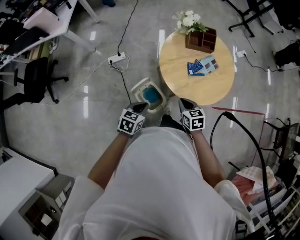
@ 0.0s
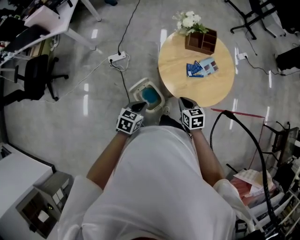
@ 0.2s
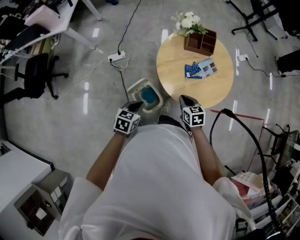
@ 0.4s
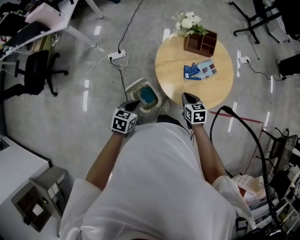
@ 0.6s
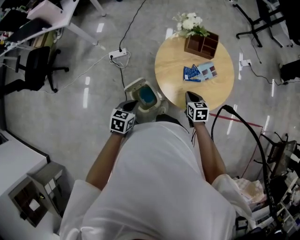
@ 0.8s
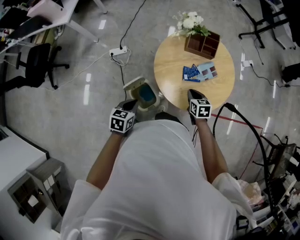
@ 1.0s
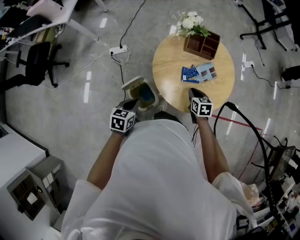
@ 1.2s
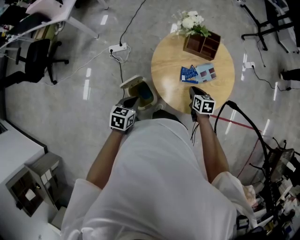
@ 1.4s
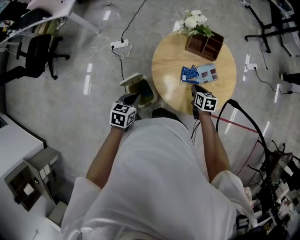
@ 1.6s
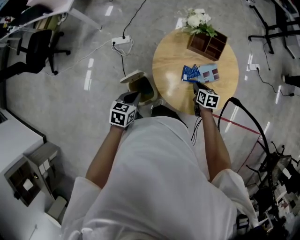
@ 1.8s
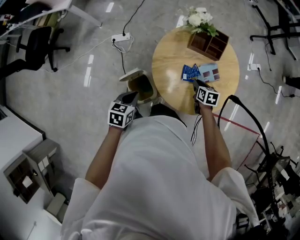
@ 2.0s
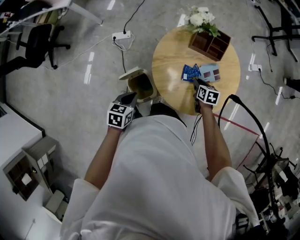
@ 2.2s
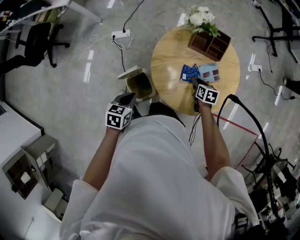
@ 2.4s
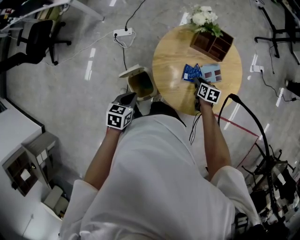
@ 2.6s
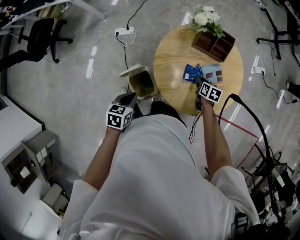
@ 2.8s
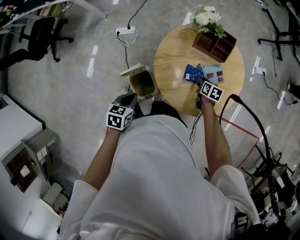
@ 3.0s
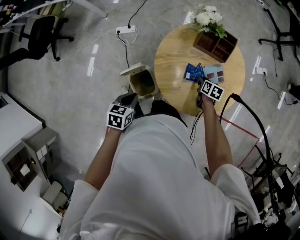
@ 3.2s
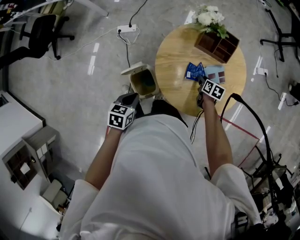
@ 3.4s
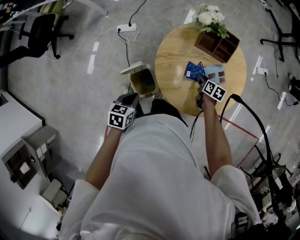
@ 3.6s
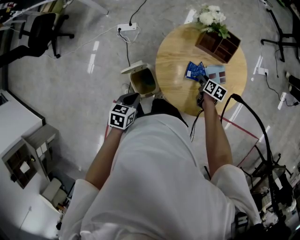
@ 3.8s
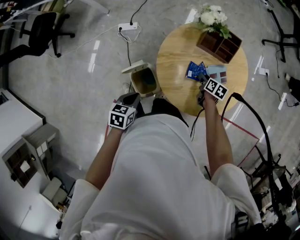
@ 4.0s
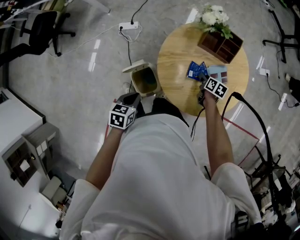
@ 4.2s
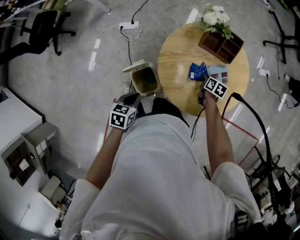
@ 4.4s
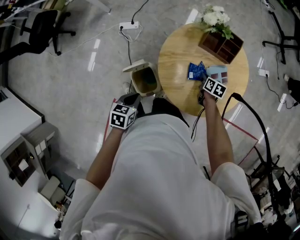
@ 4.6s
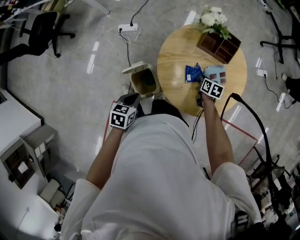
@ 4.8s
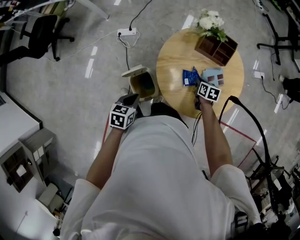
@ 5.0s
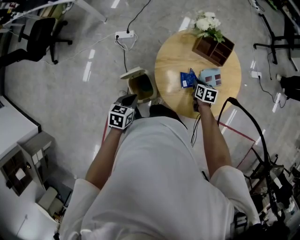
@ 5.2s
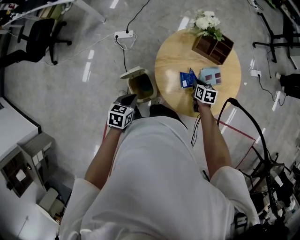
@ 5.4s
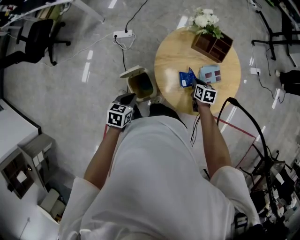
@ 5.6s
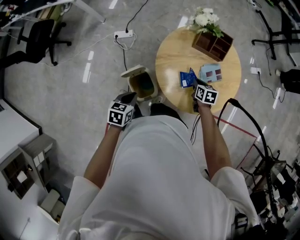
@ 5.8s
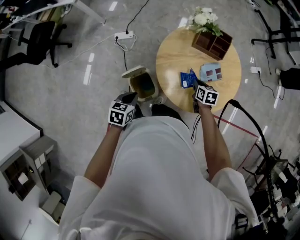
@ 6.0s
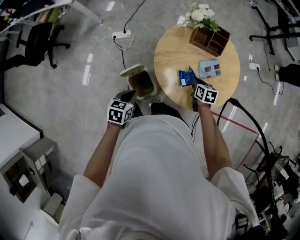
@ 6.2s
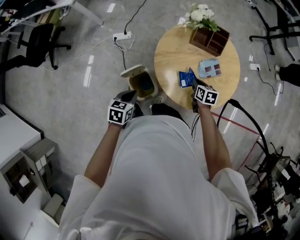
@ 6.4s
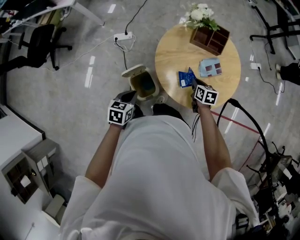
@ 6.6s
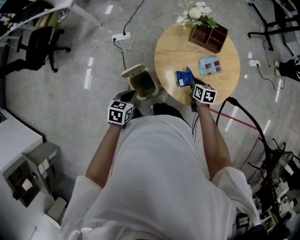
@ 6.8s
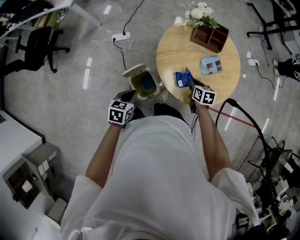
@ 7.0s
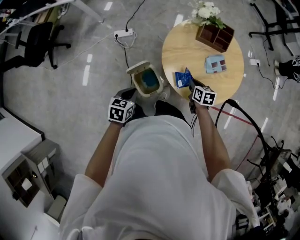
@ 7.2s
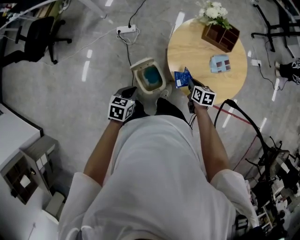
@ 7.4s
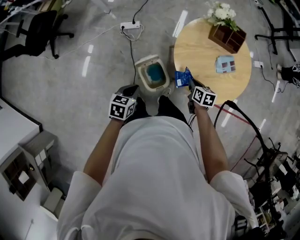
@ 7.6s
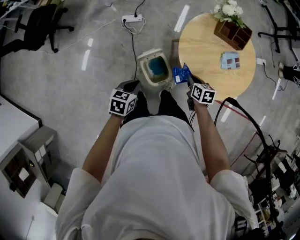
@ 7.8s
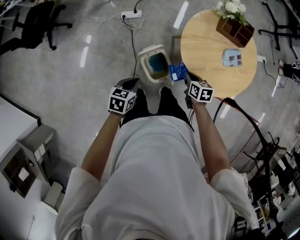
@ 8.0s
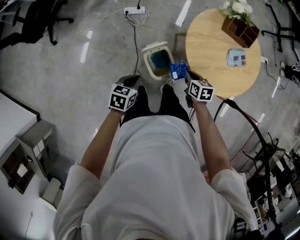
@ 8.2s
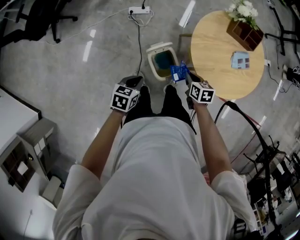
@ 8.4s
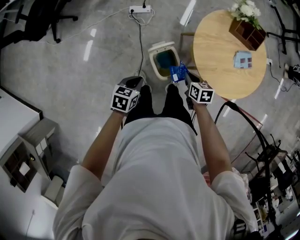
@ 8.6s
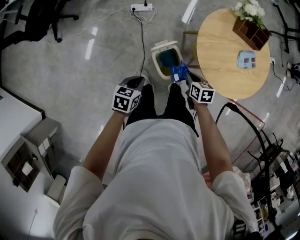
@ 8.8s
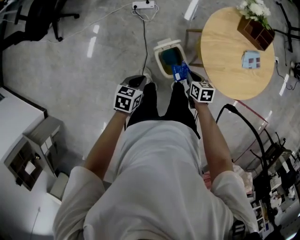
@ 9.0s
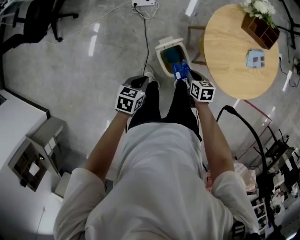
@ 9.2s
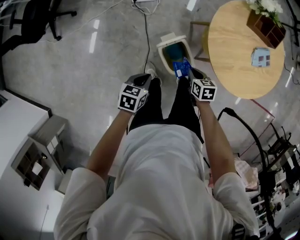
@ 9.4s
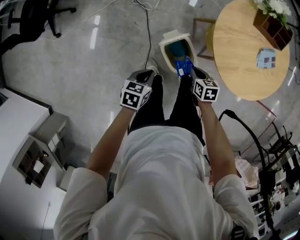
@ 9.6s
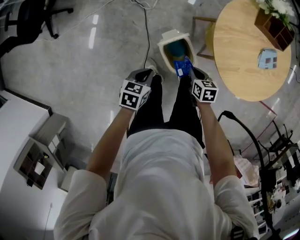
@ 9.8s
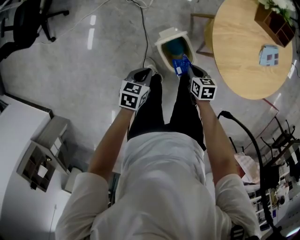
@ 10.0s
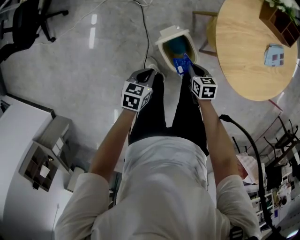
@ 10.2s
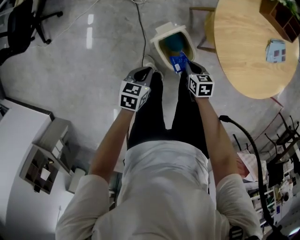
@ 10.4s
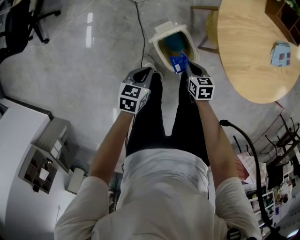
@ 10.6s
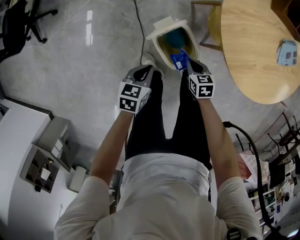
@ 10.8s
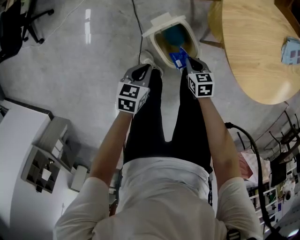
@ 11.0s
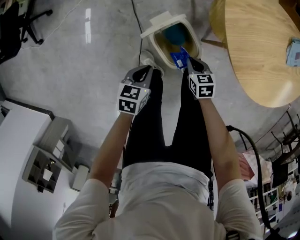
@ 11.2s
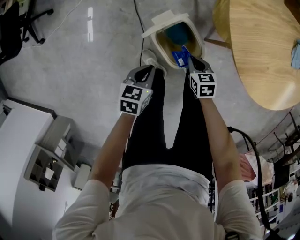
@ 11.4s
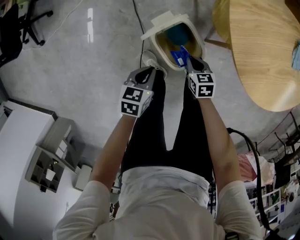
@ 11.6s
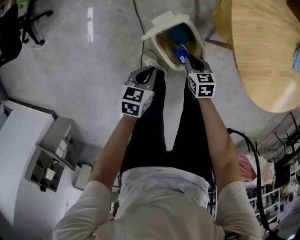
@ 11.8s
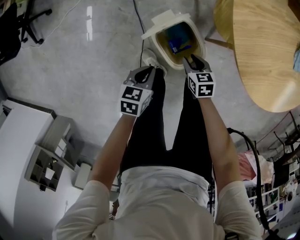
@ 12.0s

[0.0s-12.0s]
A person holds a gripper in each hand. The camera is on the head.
0.0s to 1.6s: The right gripper heads forward, to the right and downward, covering approximately 25 cm. Meanwhile the left gripper shifts about 10 cm forward and to the right.
1.6s to 3.0s: The right gripper travels downward and forward by some 10 cm, and opens up.
3.0s to 4.4s: The right gripper closes its fingers.
4.4s to 6.0s: The right gripper goes approximately 10 cm upward and backward.
6.0s to 7.6s: The left gripper goes some 10 cm to the left; the right gripper is displaced to the left and backward by roughly 15 cm.
7.6s to 9.0s: The right gripper shifts approximately 15 cm to the left and downward; the left gripper travels to the left and downward by roughly 10 cm.
9.0s to 10.4s: Both grippers travel together downward, some 15 cm.
10.4s to 12.0s: Both grippers travel together downward, about 10 cm. The right gripper opens up.

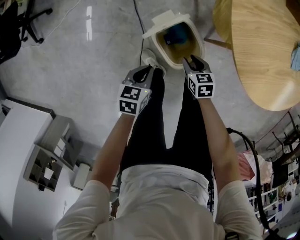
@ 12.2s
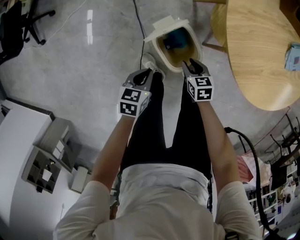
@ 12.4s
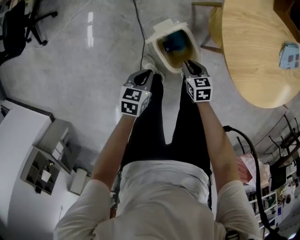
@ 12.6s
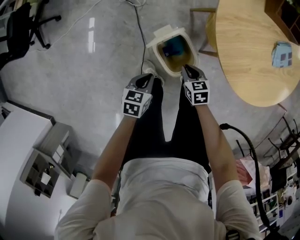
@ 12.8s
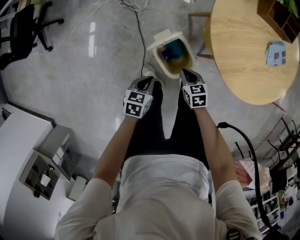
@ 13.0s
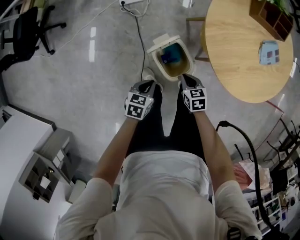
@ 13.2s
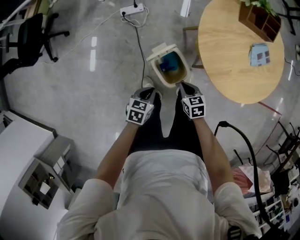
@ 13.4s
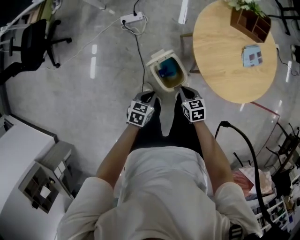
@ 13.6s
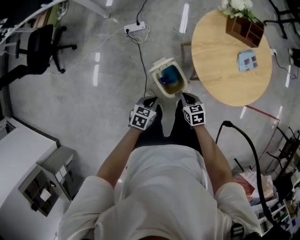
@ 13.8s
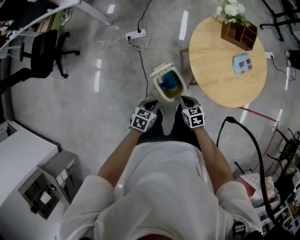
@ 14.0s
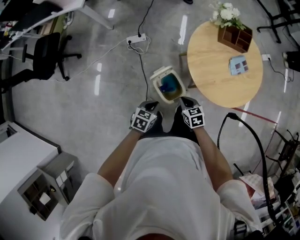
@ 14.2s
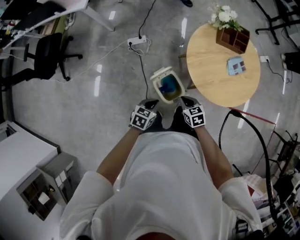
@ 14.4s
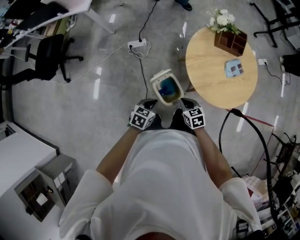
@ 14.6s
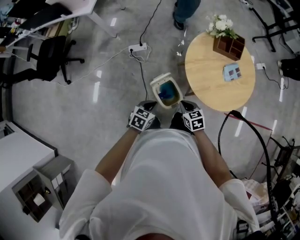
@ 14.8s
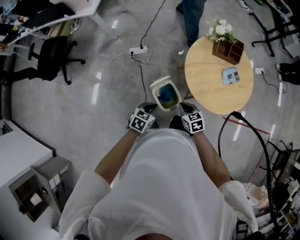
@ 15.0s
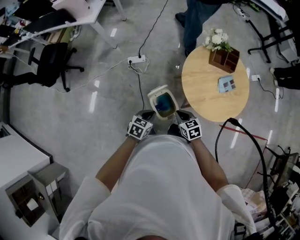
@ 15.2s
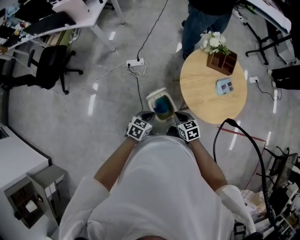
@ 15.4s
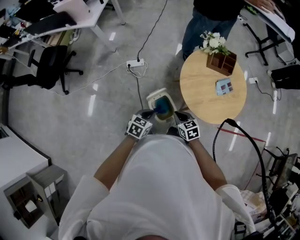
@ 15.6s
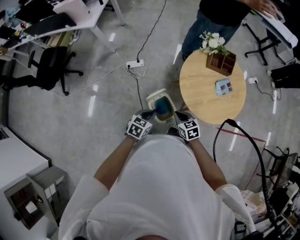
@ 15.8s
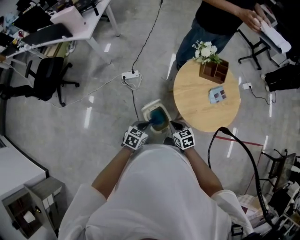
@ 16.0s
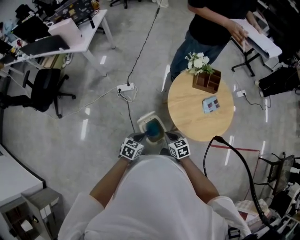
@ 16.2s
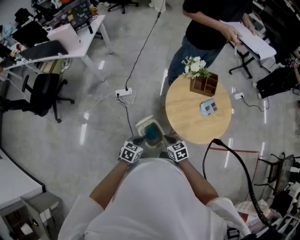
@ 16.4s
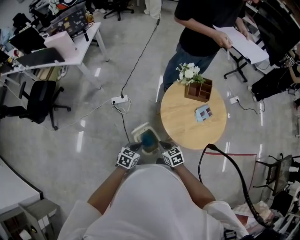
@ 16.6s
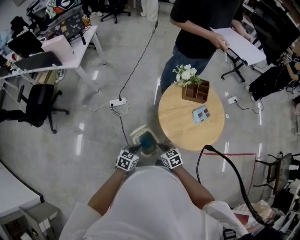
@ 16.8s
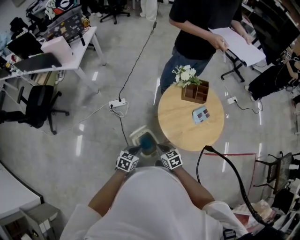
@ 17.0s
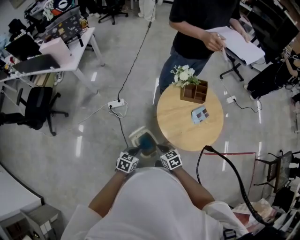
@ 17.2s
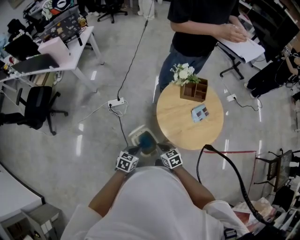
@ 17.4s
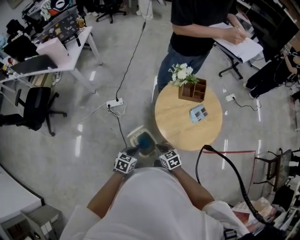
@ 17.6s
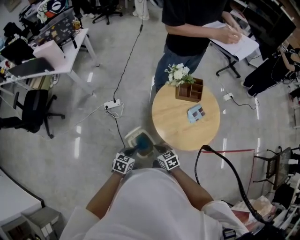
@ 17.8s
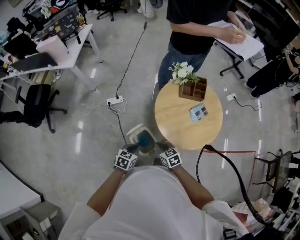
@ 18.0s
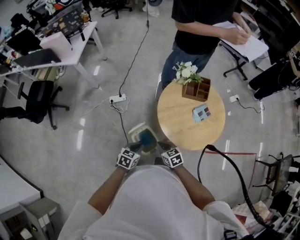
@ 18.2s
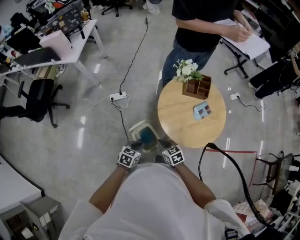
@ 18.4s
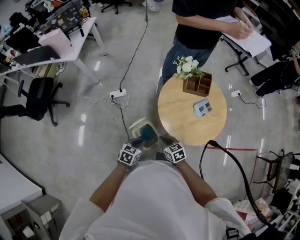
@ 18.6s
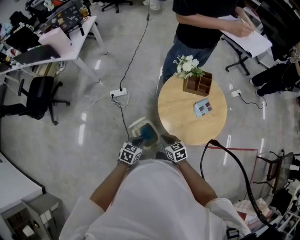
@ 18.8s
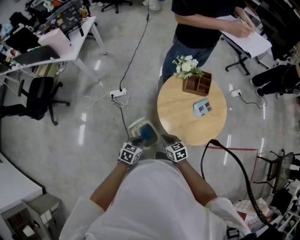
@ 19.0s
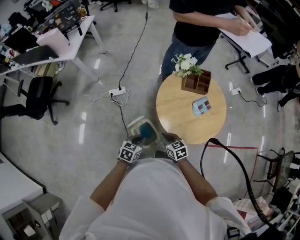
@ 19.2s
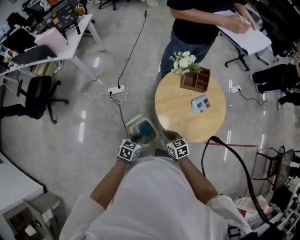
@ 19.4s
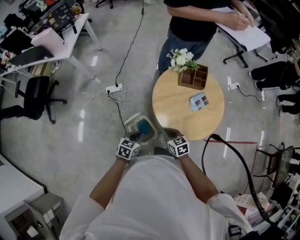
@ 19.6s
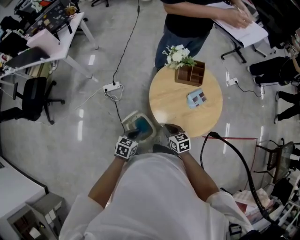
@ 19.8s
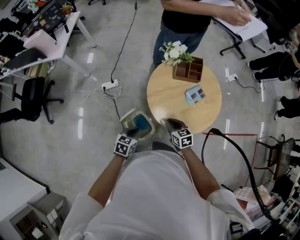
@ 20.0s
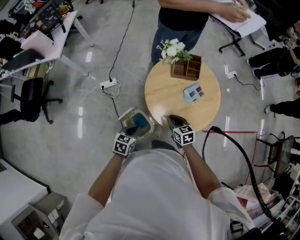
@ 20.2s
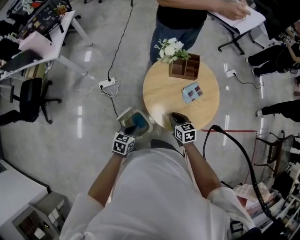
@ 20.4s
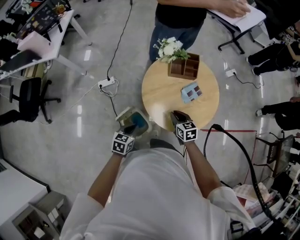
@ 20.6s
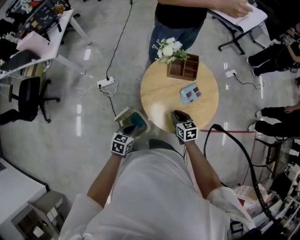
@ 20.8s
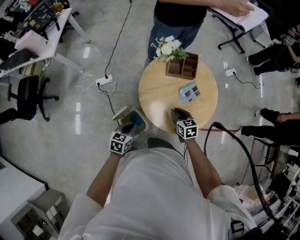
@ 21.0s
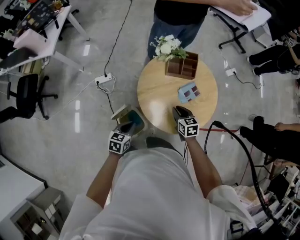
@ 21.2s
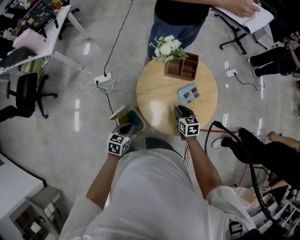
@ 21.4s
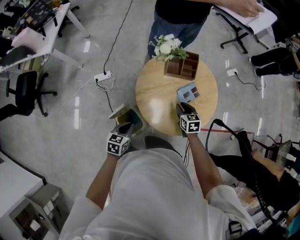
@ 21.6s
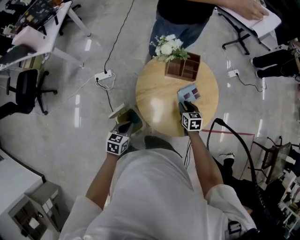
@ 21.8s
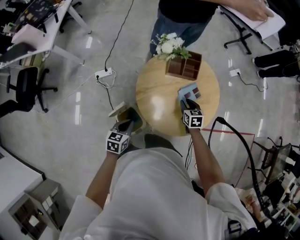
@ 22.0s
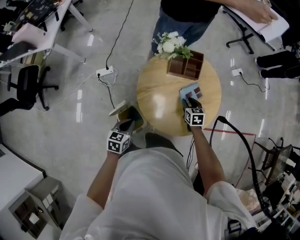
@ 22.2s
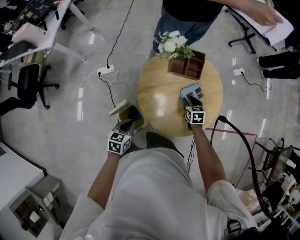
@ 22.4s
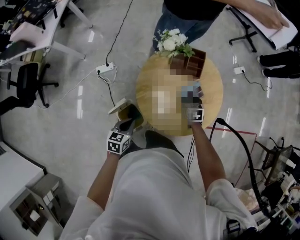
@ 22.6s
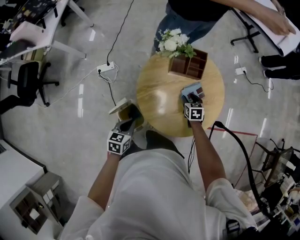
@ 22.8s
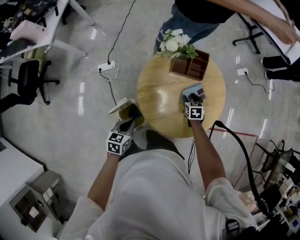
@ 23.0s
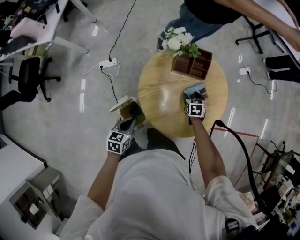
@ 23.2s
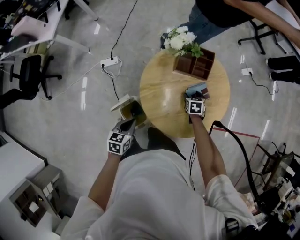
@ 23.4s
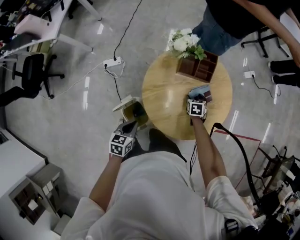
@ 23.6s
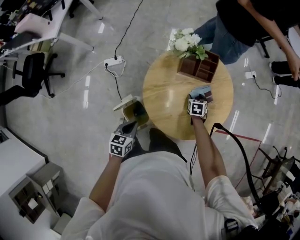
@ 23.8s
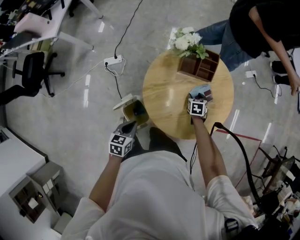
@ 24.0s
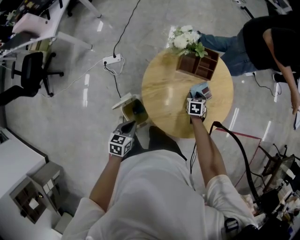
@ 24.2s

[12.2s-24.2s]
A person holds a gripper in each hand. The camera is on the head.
12.2s to 13.8s: Both grippers travel together upward, about 20 cm. The right gripper closes up.
13.8s to 15.2s: The grippers both shift upward by roughly 15 cm.
15.2s to 16.6s: The grippers stay close to where they were, moving slightly.
16.6s to 18.2s: The grippers move only a little.
18.2s to 19.8s: The right gripper shifts about 10 cm to the right.
19.8s to 21.2s: The right gripper travels to the right and forward by some 15 cm. The left gripper is displaced forward by some 5 cm.
21.2s to 22.6s: The right gripper heads forward, downward and to the right, covering approximately 15 cm, and opens its fingers.
22.6s to 24.2s: The right gripper is displaced downward by some 5 cm.
